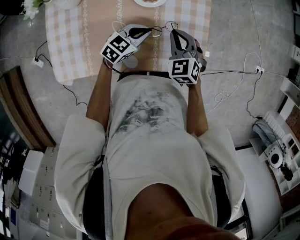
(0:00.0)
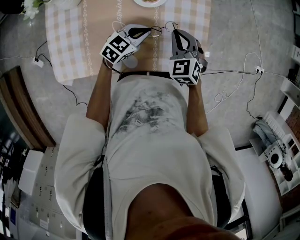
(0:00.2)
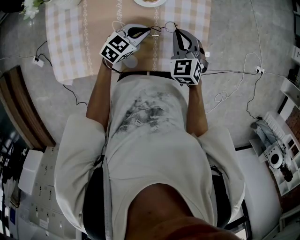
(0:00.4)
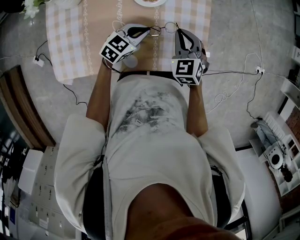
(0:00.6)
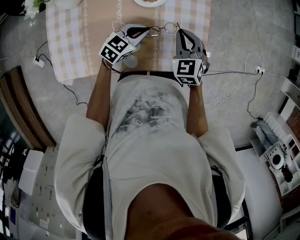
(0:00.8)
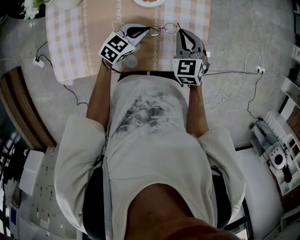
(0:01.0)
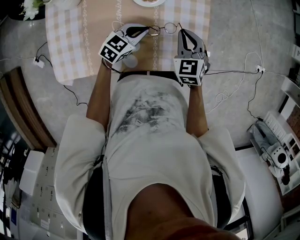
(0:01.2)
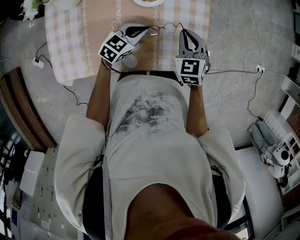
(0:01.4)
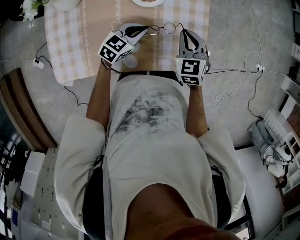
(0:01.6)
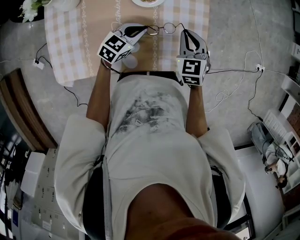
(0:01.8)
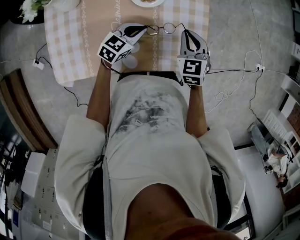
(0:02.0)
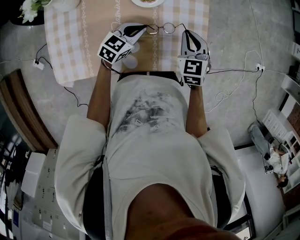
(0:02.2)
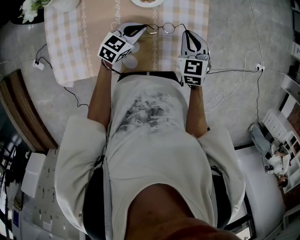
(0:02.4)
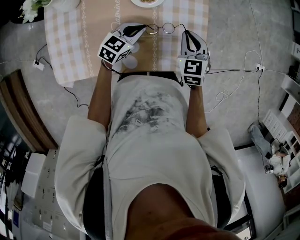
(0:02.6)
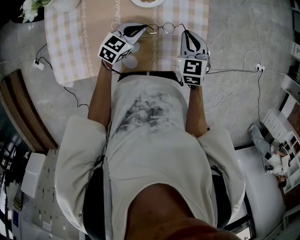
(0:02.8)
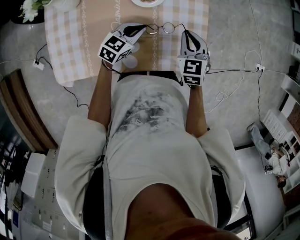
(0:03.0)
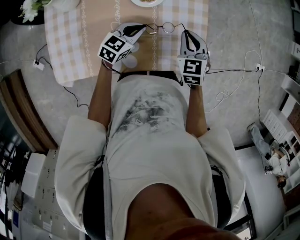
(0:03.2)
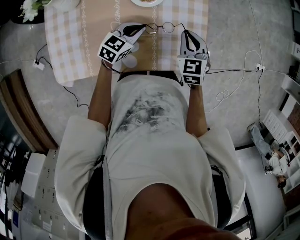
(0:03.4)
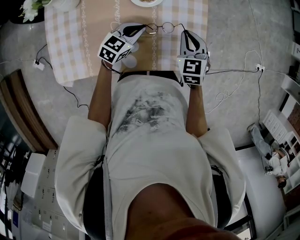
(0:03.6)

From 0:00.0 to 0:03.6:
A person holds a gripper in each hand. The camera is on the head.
From 0:00.0 to 0:01.8: The grippers move only a little.
From 0:01.8 to 0:03.6: Both grippers stay put.

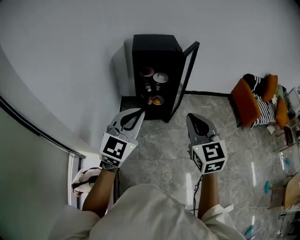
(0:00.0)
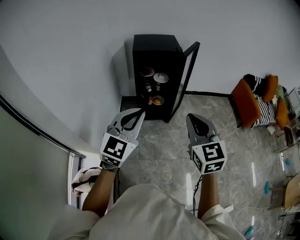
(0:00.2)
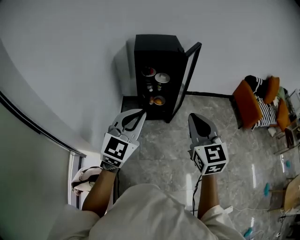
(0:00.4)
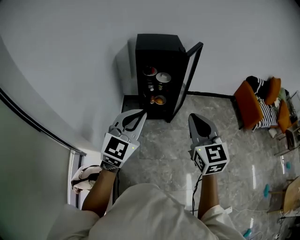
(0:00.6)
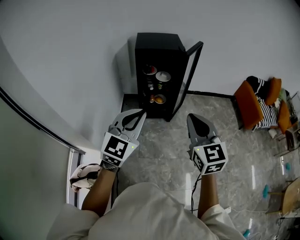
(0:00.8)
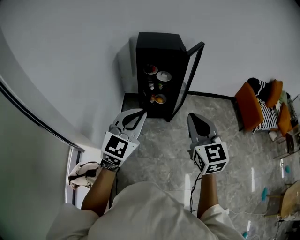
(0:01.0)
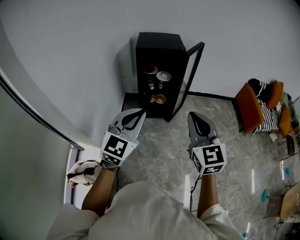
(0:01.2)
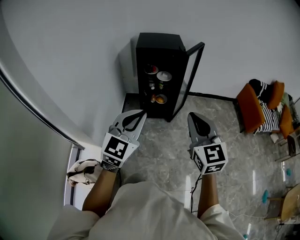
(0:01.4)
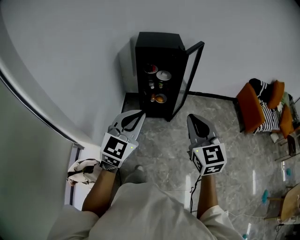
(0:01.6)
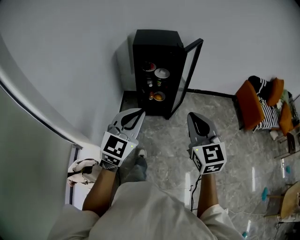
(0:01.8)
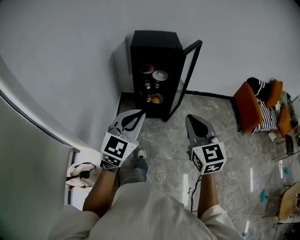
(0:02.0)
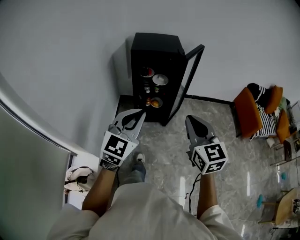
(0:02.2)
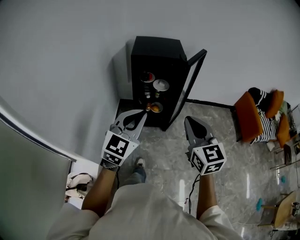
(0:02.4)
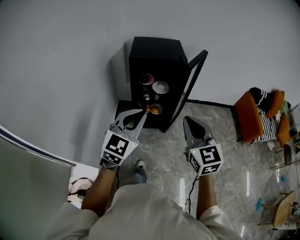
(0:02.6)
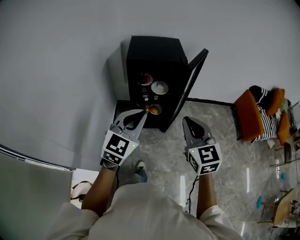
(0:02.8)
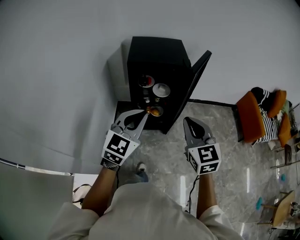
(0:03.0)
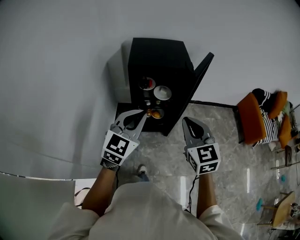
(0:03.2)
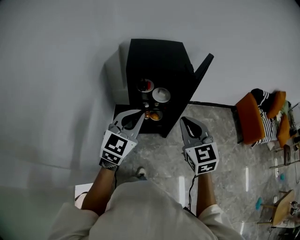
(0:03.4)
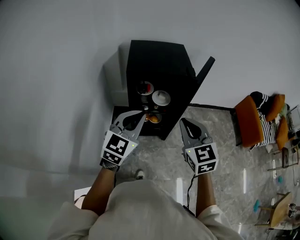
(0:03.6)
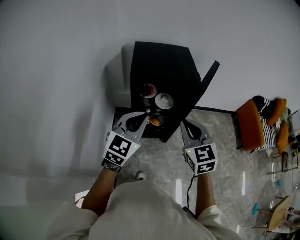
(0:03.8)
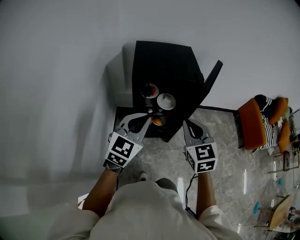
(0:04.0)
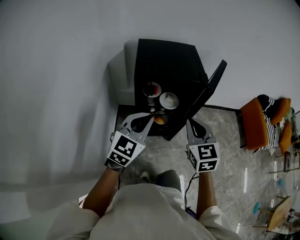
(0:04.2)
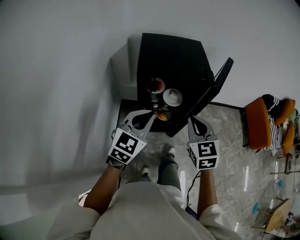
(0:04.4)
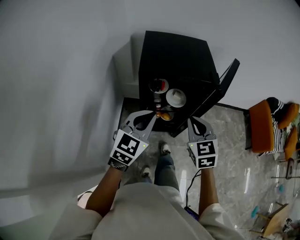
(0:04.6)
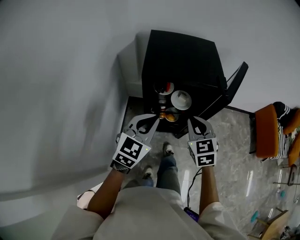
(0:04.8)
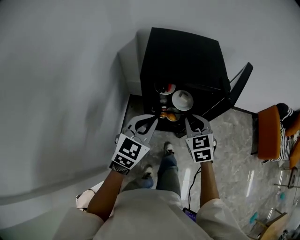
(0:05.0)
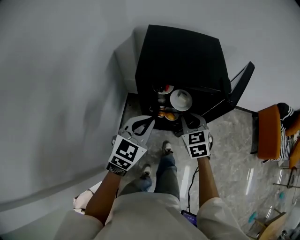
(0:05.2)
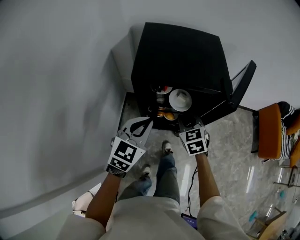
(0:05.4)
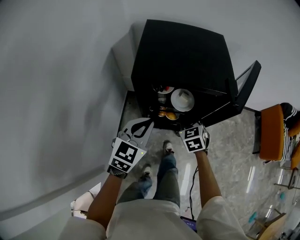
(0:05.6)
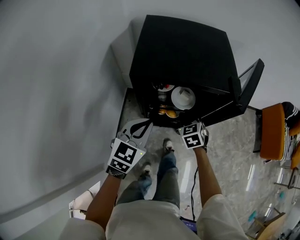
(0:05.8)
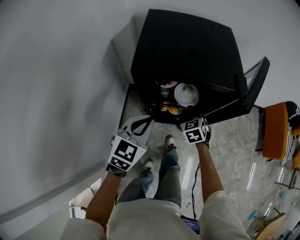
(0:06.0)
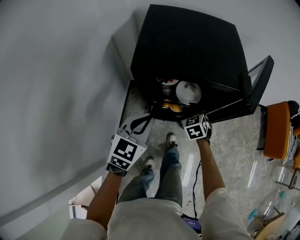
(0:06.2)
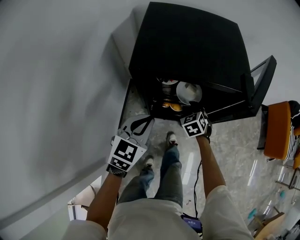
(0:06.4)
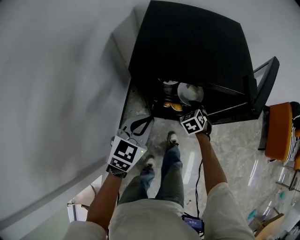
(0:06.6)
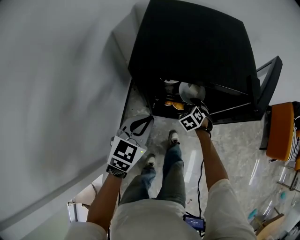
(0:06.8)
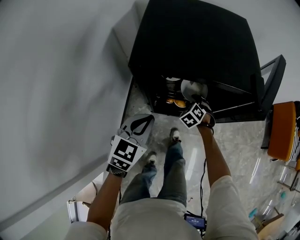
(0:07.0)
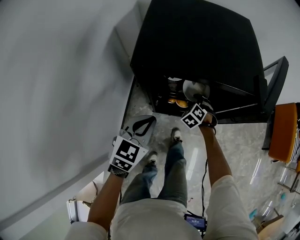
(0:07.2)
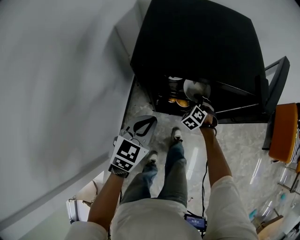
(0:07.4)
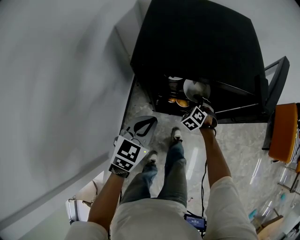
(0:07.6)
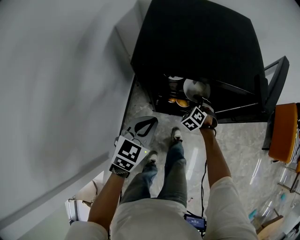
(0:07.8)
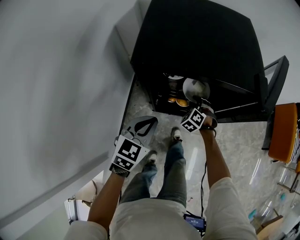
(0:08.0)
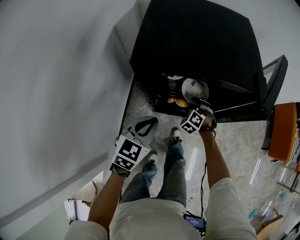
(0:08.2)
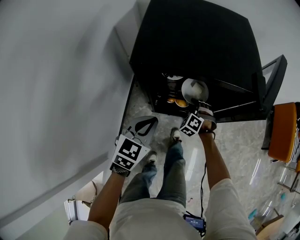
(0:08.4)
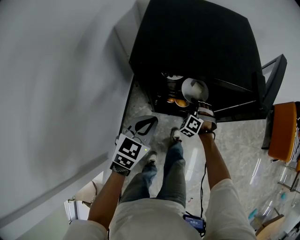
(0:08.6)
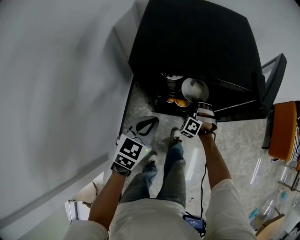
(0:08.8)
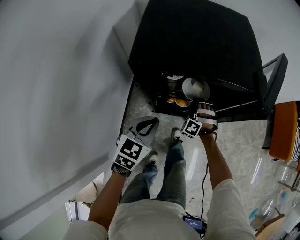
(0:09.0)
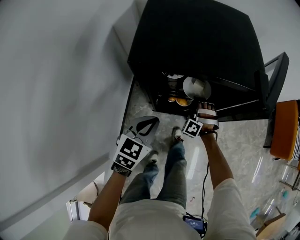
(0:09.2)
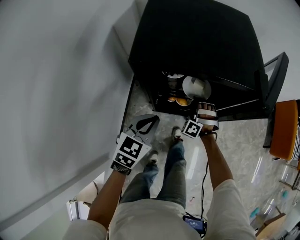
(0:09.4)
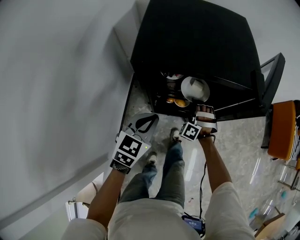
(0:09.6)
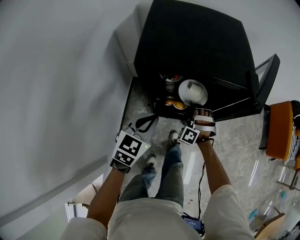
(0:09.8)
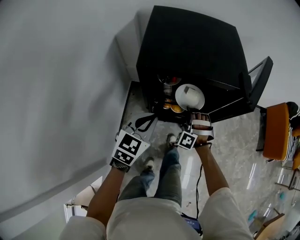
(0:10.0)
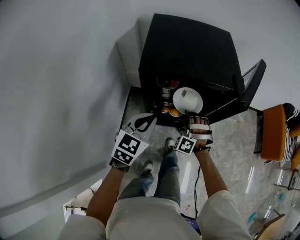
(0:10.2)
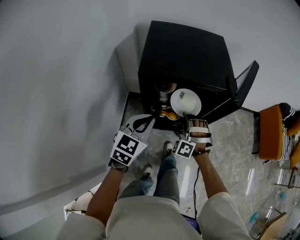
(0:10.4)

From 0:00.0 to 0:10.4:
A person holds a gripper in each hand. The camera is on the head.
From 0:00.0 to 0:01.4: The left gripper ends up approximately 5 cm from where it was.
From 0:01.4 to 0:03.0: The grippers both shift forward by some 25 cm.
From 0:03.0 to 0:04.4: Both grippers move forward and to the left, approximately 20 cm.
From 0:04.4 to 0:06.0: The left gripper heads downward and forward, covering about 20 cm. Meanwhile the right gripper is displaced downward and forward by about 35 cm, turns by some 30 degrees, and opens up.
From 0:06.0 to 0:07.4: The left gripper heads downward, covering approximately 5 cm; the right gripper moves downward and forward, approximately 15 cm, and changes its angle by some 30 degrees.
From 0:07.4 to 0:09.0: The right gripper turns by about 30 degrees, and closes up.
From 0:09.0 to 0:10.4: The right gripper heads upward and backward, covering about 20 cm, while the left gripper heads upward, covering roughly 10 cm.

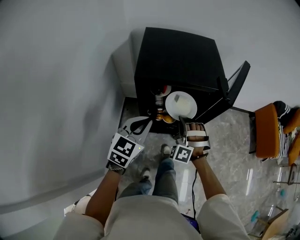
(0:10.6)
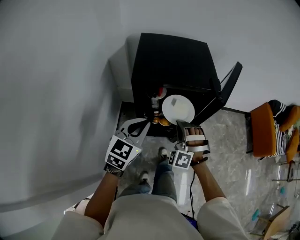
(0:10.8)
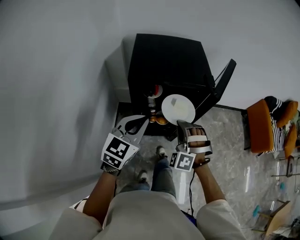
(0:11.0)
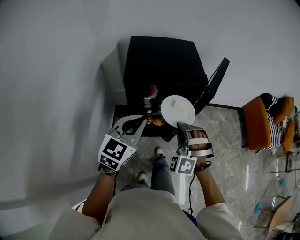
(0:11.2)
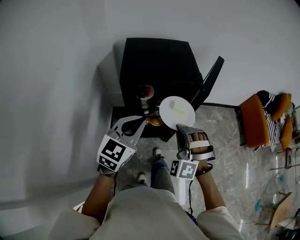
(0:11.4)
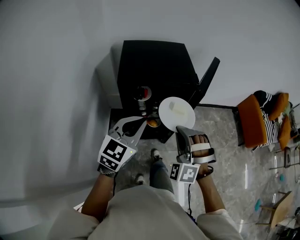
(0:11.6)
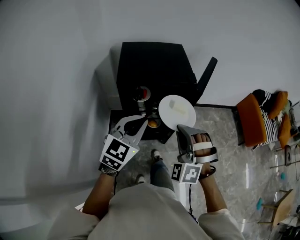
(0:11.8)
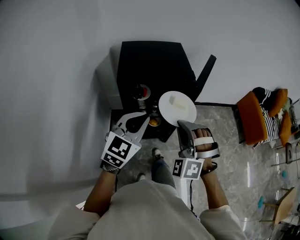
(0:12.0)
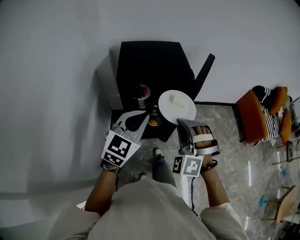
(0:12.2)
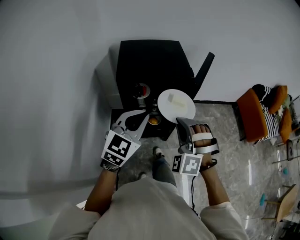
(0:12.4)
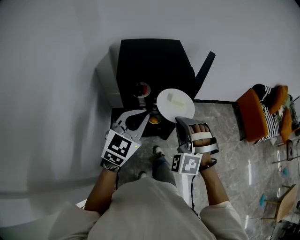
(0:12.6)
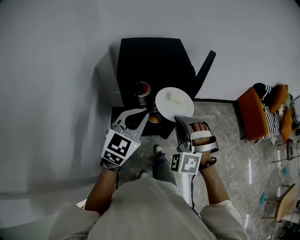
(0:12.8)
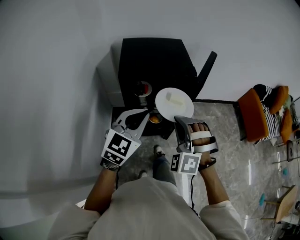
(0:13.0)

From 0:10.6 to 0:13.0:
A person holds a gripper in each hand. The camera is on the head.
From 0:10.6 to 0:11.8: The right gripper moves upward, backward and to the right, approximately 25 cm. Meanwhile the left gripper travels upward, to the right and backward by about 15 cm.
From 0:11.8 to 0:13.0: There are only small adjustments of the grippers.

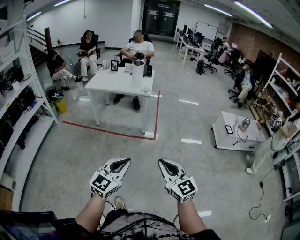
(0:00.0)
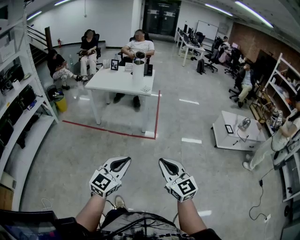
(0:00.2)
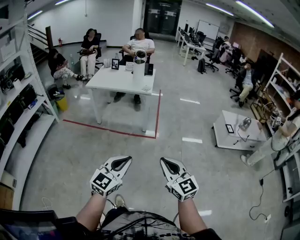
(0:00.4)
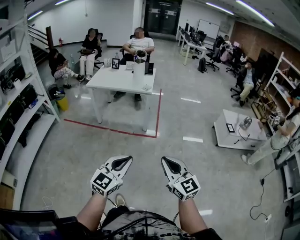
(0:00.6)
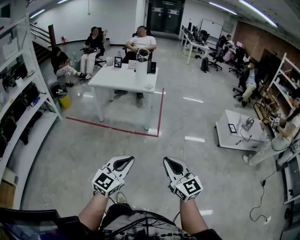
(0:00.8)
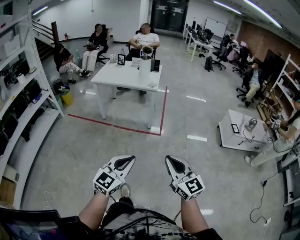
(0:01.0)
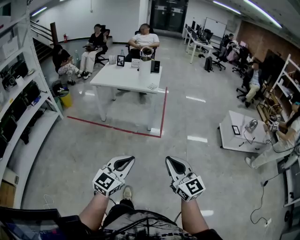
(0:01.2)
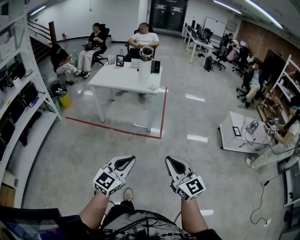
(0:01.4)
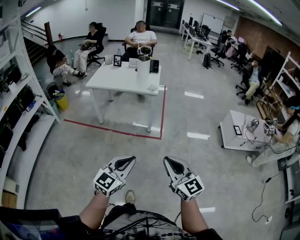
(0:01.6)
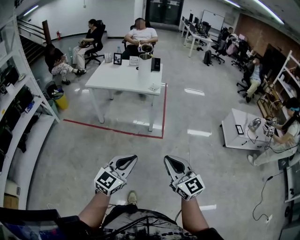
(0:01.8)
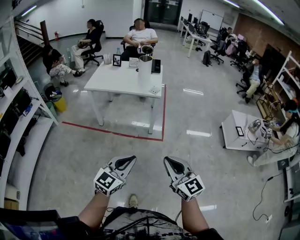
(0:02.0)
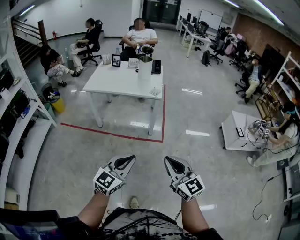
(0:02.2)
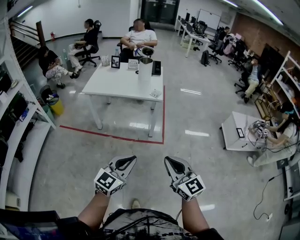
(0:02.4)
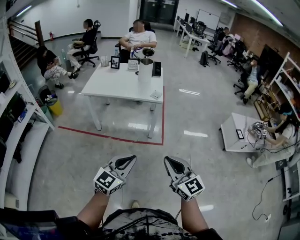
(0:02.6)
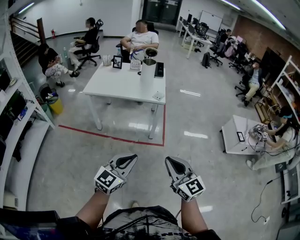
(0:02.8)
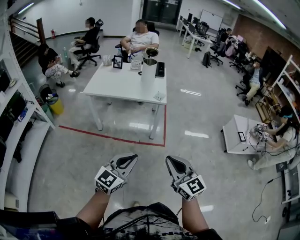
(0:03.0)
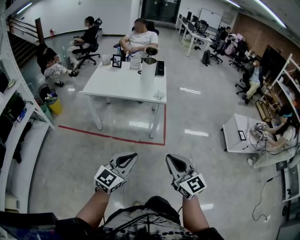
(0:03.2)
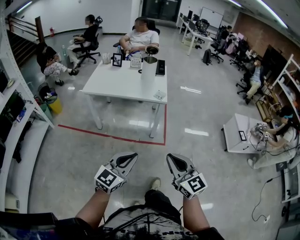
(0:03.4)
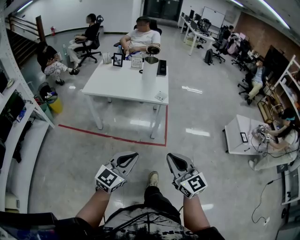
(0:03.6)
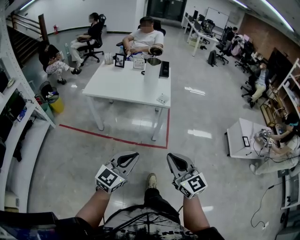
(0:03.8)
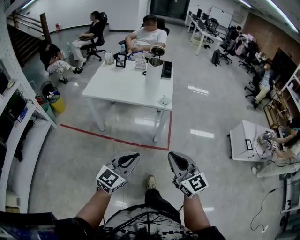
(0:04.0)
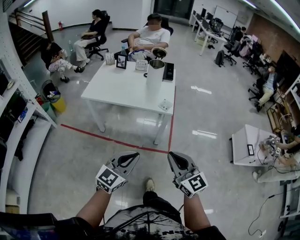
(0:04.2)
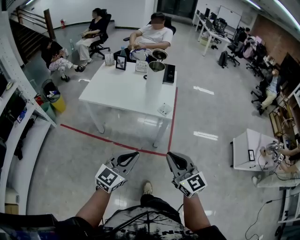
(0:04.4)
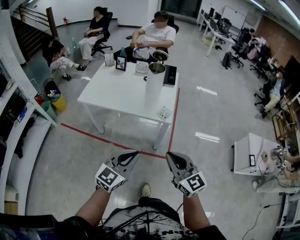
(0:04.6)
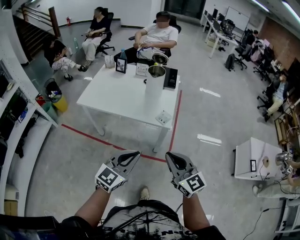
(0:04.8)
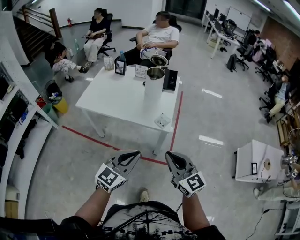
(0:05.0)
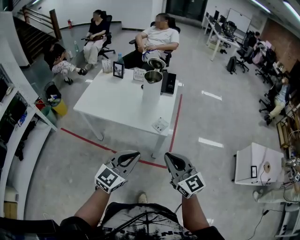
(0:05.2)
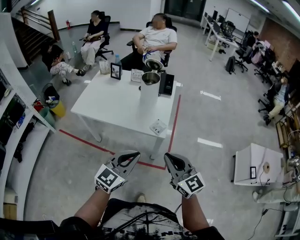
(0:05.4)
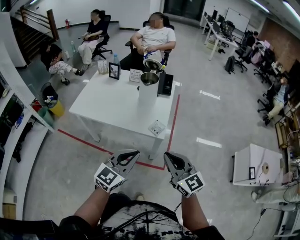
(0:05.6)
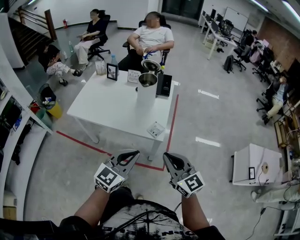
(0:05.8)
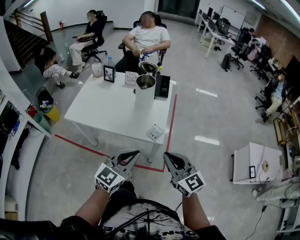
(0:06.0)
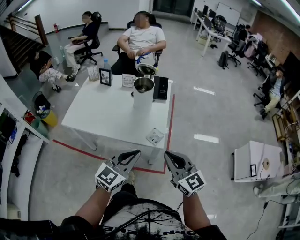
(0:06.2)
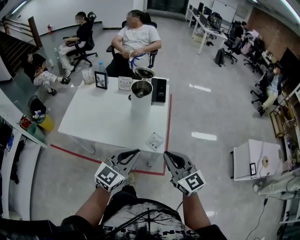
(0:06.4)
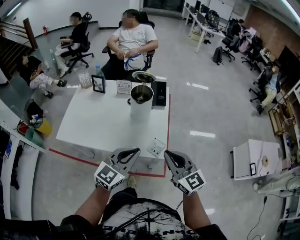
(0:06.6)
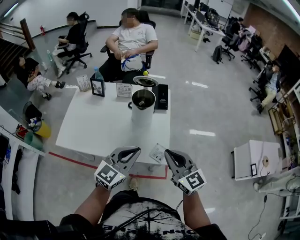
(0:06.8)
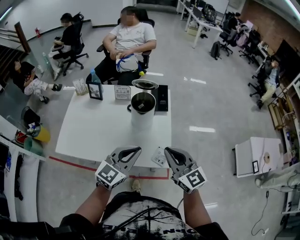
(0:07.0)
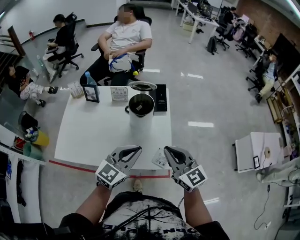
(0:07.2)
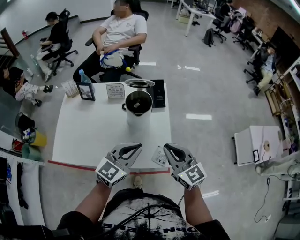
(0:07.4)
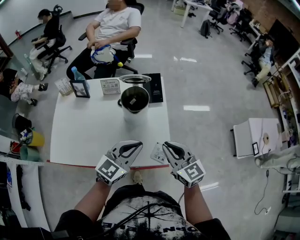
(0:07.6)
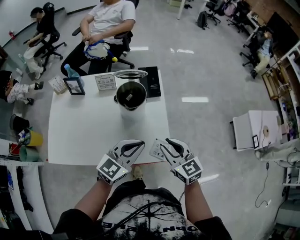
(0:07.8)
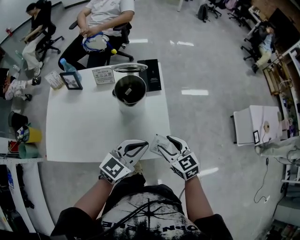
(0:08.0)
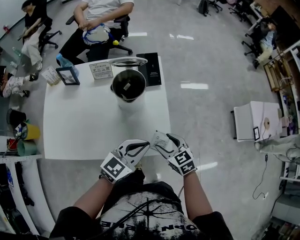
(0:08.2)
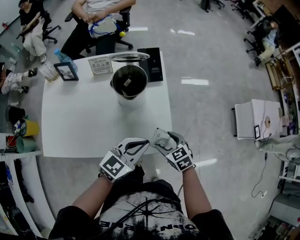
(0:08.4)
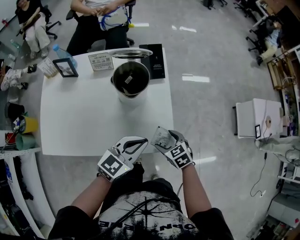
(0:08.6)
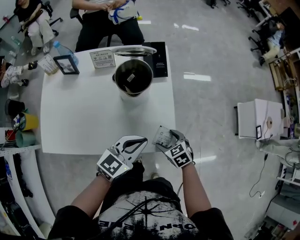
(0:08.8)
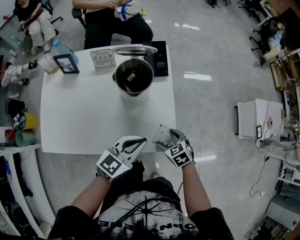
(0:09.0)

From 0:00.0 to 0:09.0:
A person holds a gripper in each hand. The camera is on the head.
From 0:00.0 to 0:01.6: Both grippers travel together forward, approximately 10 cm.
From 0:01.6 to 0:03.0: Both grippers travel together forward and to the left, about 20 cm.
From 0:03.0 to 0:04.4: Both grippers move forward, roughly 20 cm.
From 0:04.4 to 0:06.0: The two grippers go about 20 cm forward.
From 0:06.0 to 0:07.6: Both grippers move forward, approximately 25 cm.
From 0:07.6 to 0:09.0: The left gripper goes about 10 cm downward; the right gripper goes some 25 cm downward, points its fingers roughly 40 degrees further downward, and opens its fingers.
